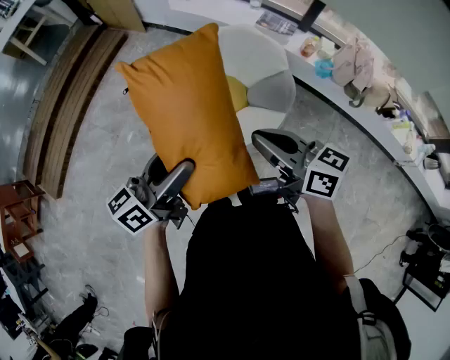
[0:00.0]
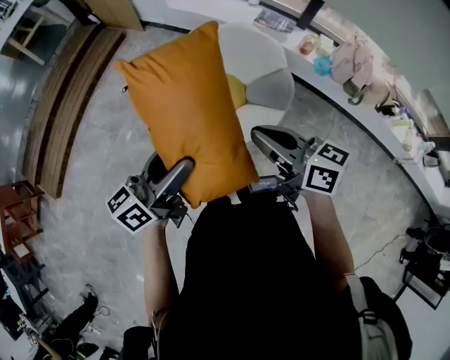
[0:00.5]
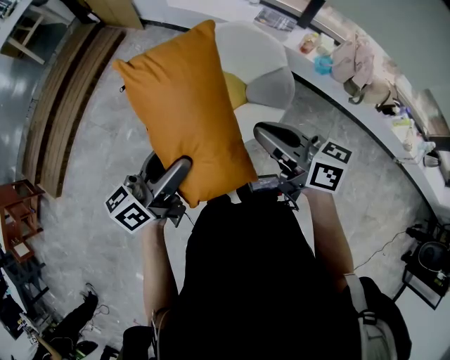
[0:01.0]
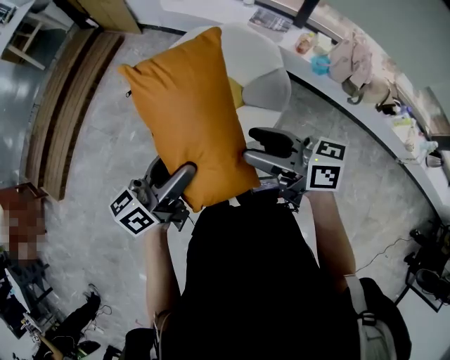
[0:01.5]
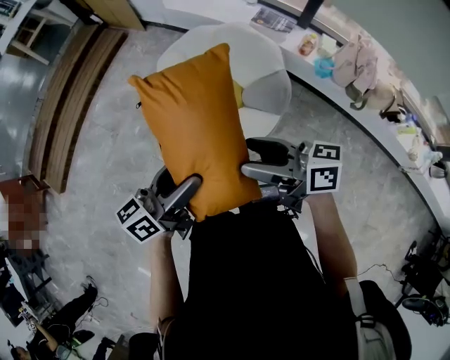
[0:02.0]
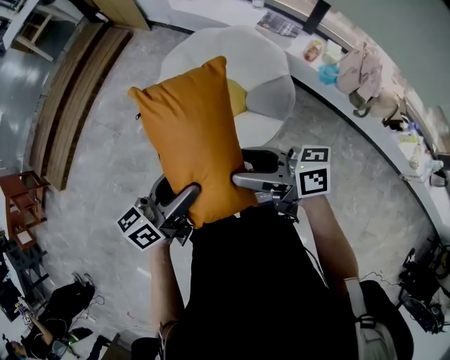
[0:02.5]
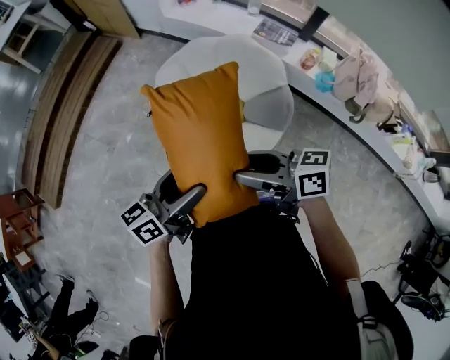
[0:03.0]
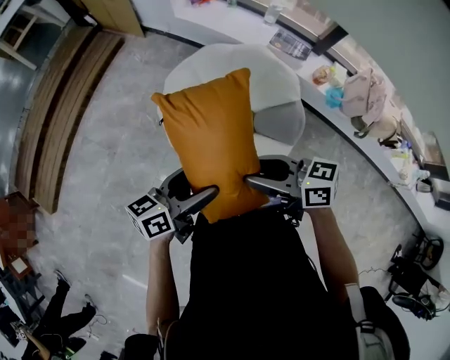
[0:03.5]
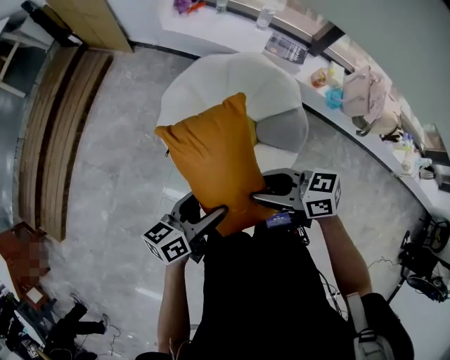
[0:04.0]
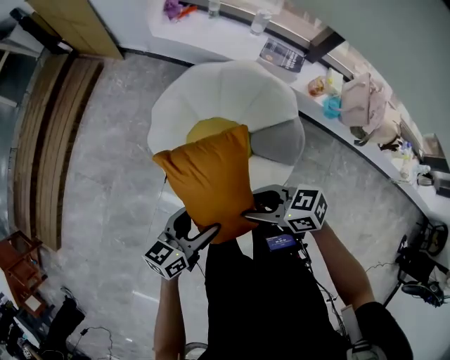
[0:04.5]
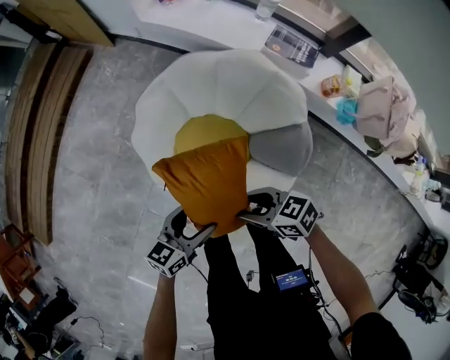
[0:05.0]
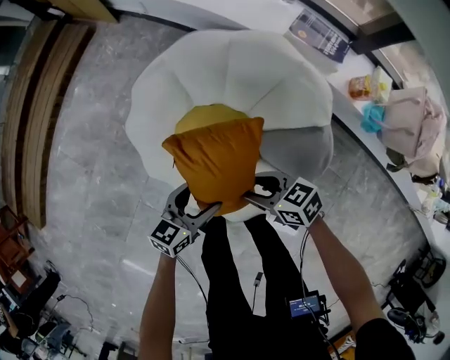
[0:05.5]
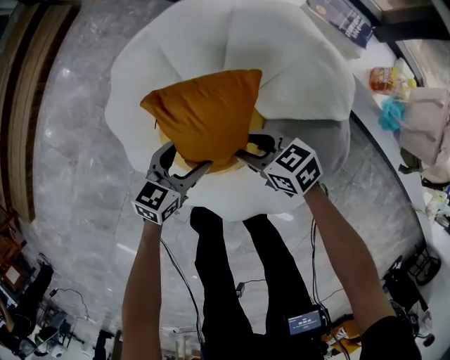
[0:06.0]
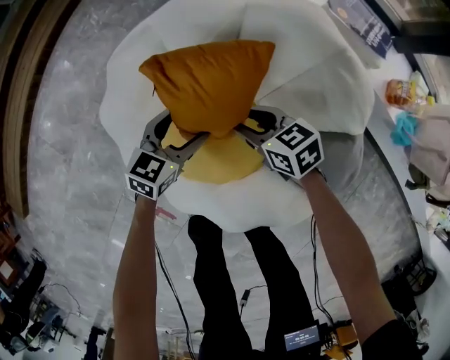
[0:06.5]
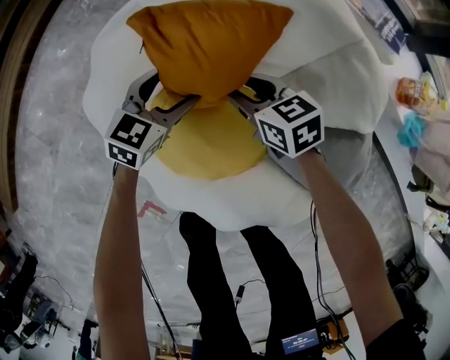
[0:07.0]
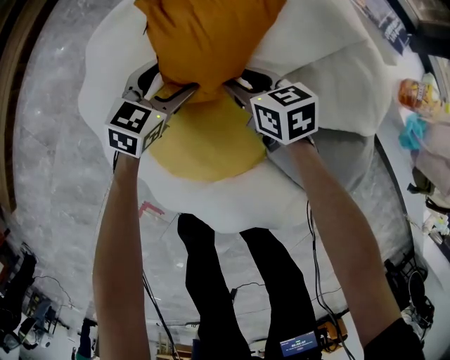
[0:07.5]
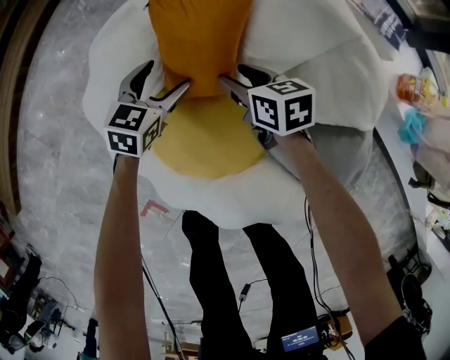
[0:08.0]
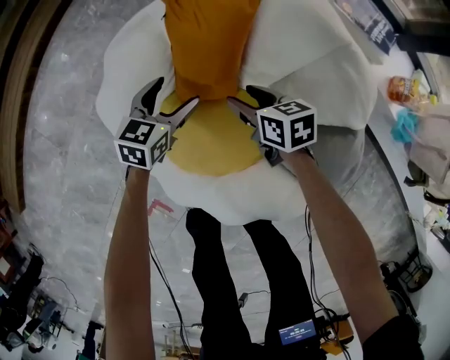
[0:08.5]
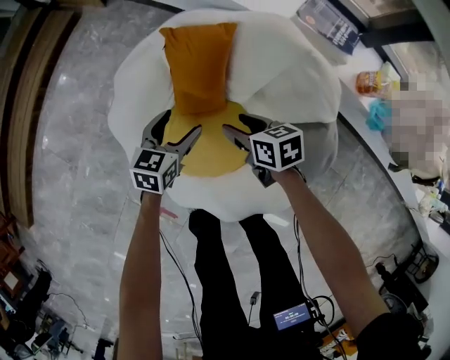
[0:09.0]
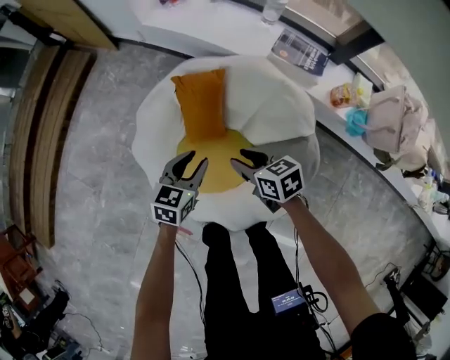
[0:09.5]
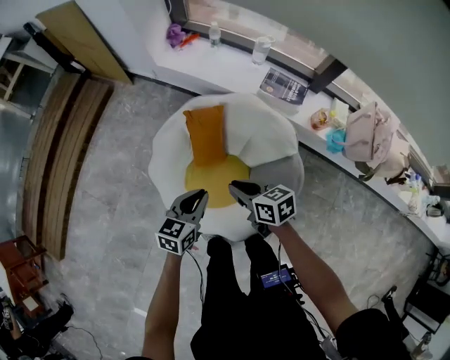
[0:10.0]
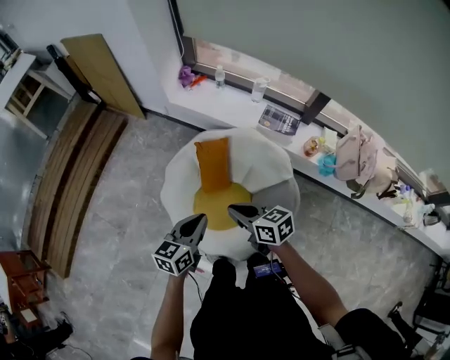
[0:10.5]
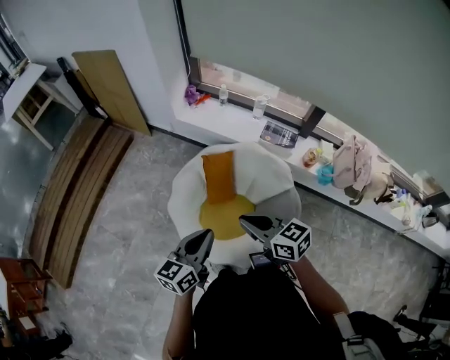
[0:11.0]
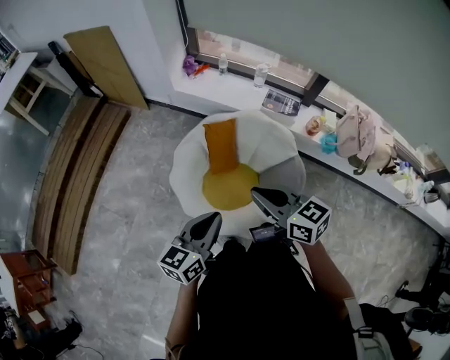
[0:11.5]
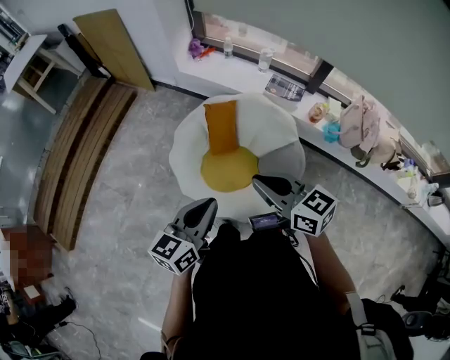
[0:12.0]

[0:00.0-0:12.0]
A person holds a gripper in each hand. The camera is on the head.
0:00.0 to 0:02.0: The two grippers go approximately 10 cm to the right. The right gripper swivels roughly 20 degrees, and opens up.
0:02.0 to 0:04.0: The right gripper ends up about 25 cm from where it was, changes its angle by some 20 degrees, and closes its fingers. The left gripper changes place by about 25 cm.
0:04.0 to 0:06.0: The grippers both shift downward by approximately 50 cm. The right gripper turns by some 20 degrees, while the left gripper turns by roughly 30 degrees.
0:06.0 to 0:08.0: The two grippers go some 20 cm forward and downward. The right gripper rotates some 20 degrees.
0:08.0 to 0:10.0: Both grippers move upward and backward, about 50 cm. The right gripper closes up, while the left gripper closes its fingers.
0:10.0 to 0:12.0: The grippers both shift upward and backward by some 30 cm. The right gripper swivels approximately 30 degrees.

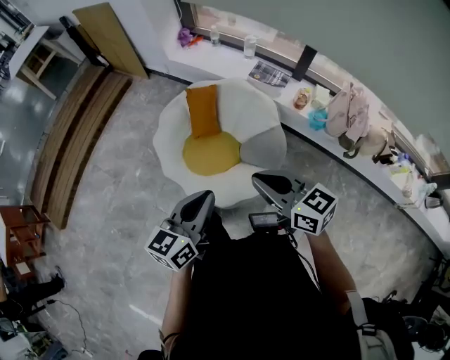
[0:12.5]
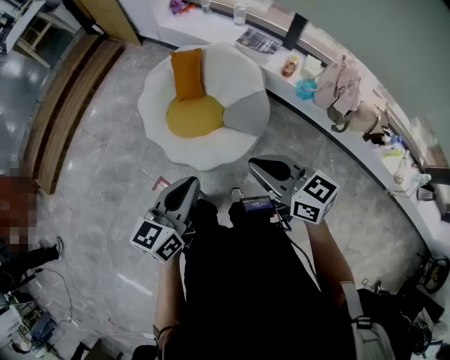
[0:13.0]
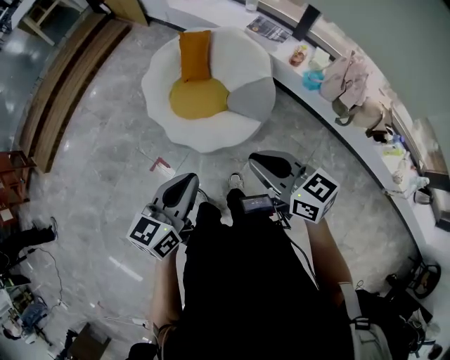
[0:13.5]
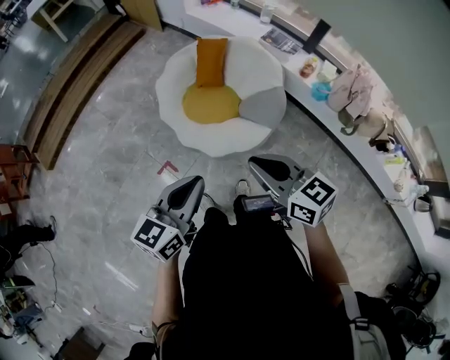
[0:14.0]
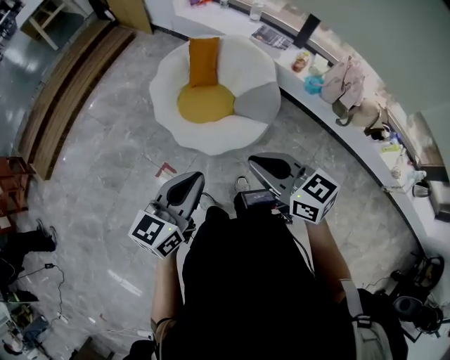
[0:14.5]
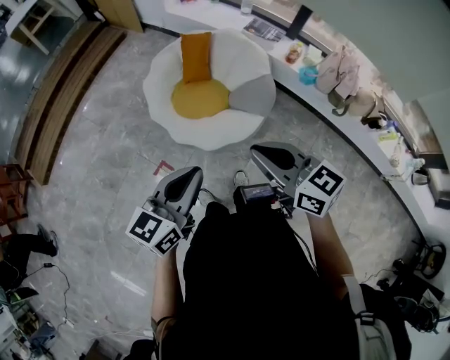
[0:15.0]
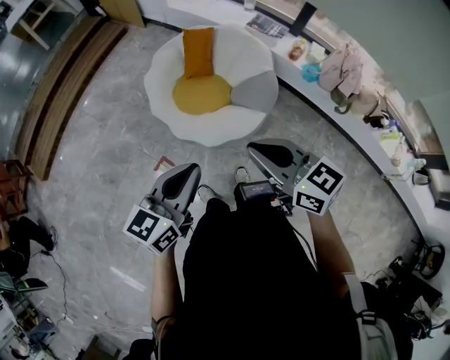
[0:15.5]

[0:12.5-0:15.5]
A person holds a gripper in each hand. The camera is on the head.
0:12.5 to 0:14.0: The grippers both shift backward by some 20 cm.
0:14.0 to 0:15.5: The grippers move only a little.

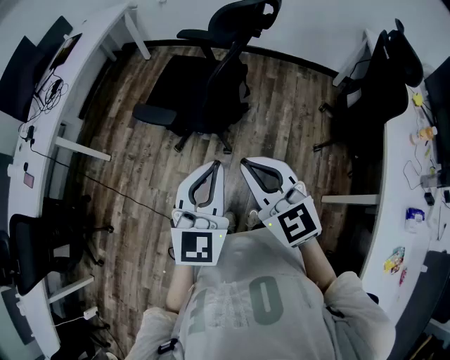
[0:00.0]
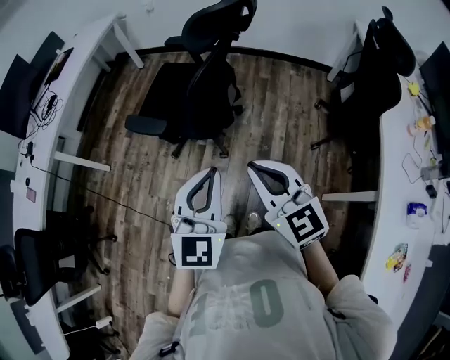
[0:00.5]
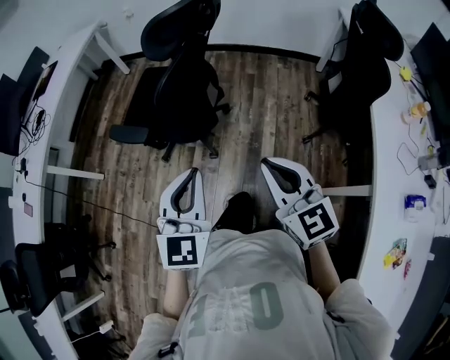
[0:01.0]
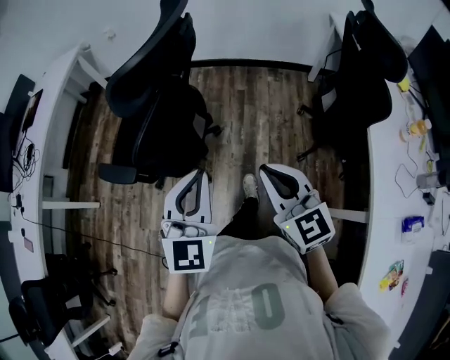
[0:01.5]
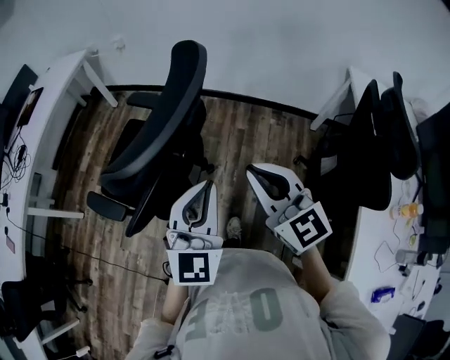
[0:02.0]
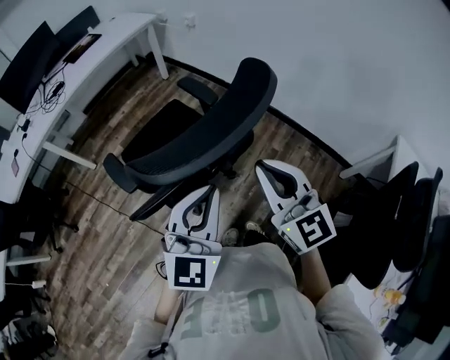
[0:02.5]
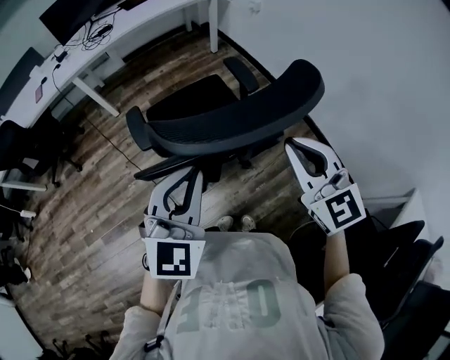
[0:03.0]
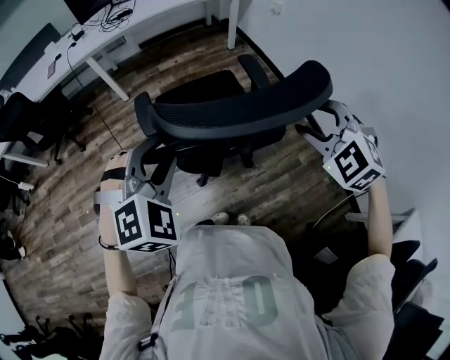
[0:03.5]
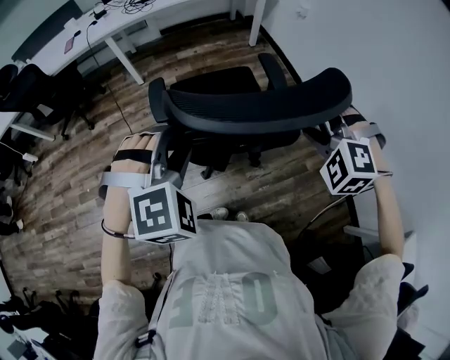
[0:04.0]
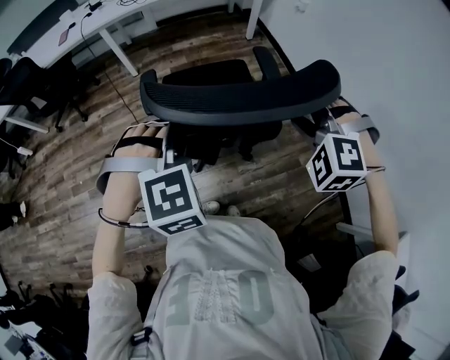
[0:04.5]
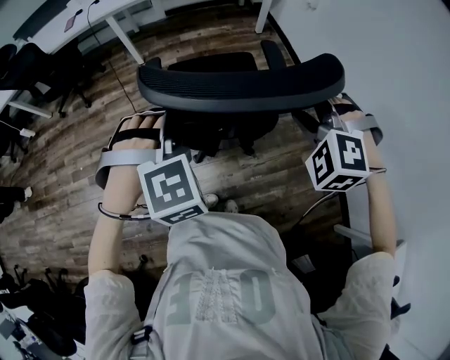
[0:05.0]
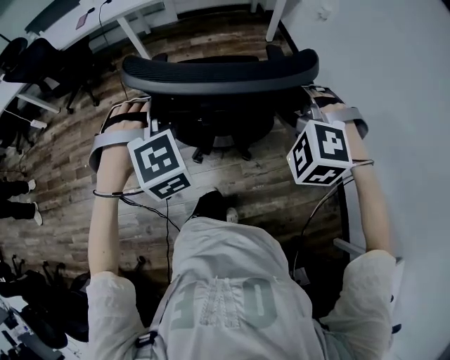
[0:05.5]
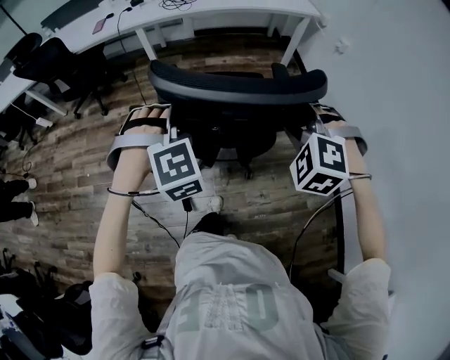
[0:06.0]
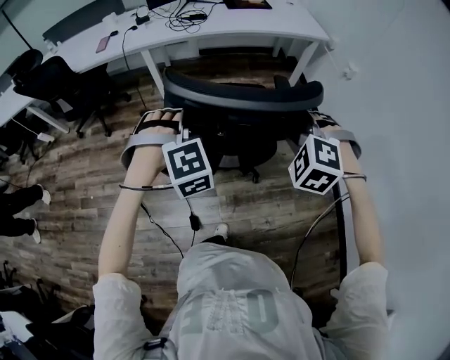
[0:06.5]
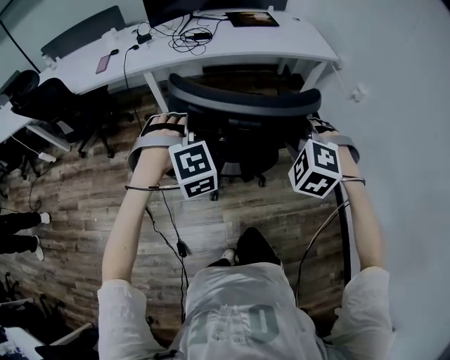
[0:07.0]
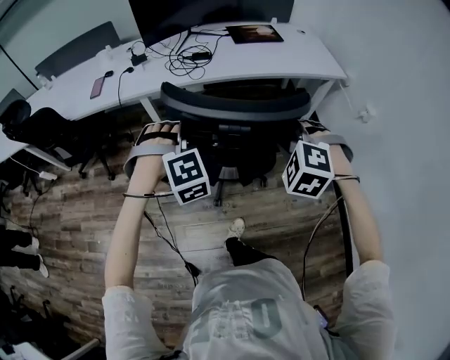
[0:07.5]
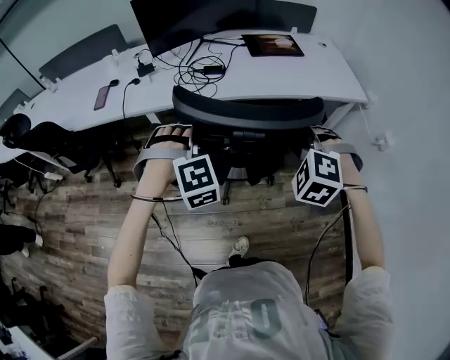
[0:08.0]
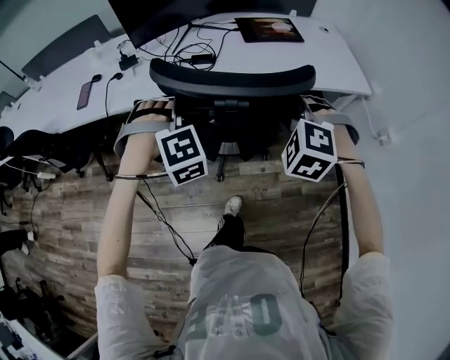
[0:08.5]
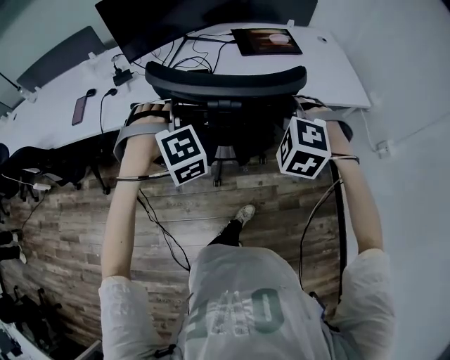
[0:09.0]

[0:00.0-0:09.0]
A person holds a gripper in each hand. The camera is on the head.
0:00.0 to 0:02.0: Both grippers travel together forward and to the right, about 40 cm.
0:02.0 to 0:04.5: The left gripper changes place by some 10 cm, tilts its fingers about 50 degrees downward, and opens its fingers. Meanwhile the right gripper ends up about 20 cm from where it was, rolls counterclockwise, seen from behind, by some 80 degrees, and opens up.
0:04.5 to 0:07.0: Both grippers are carried forward, some 40 cm.
0:07.0 to 0:09.0: The pair of grippers is taken forward, roughly 40 cm.

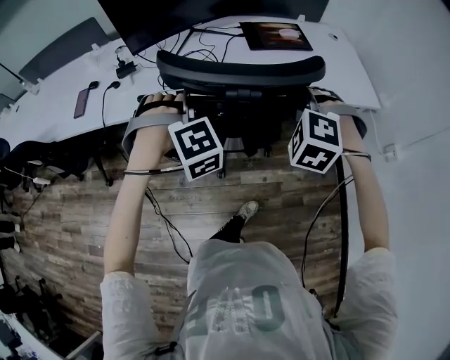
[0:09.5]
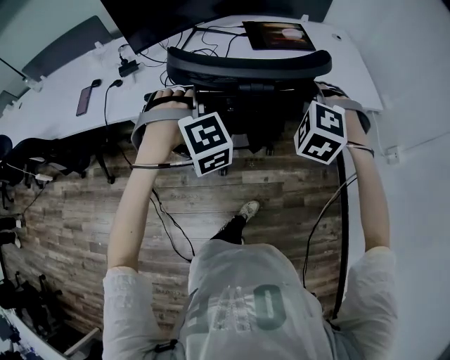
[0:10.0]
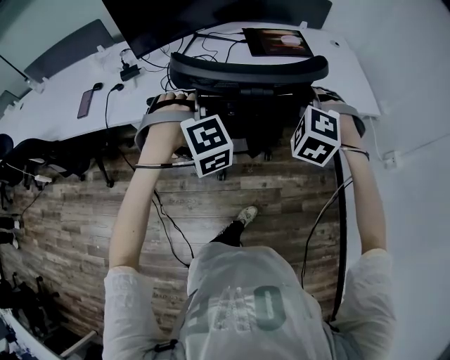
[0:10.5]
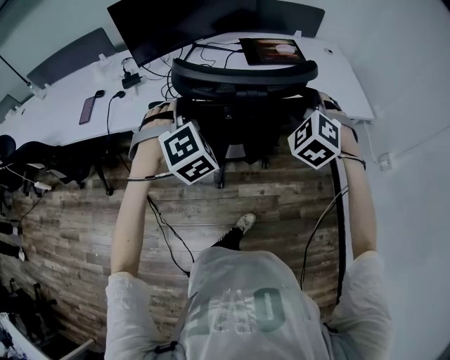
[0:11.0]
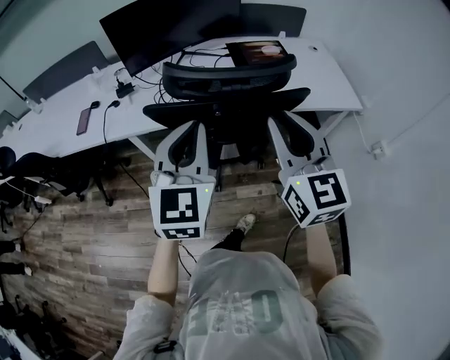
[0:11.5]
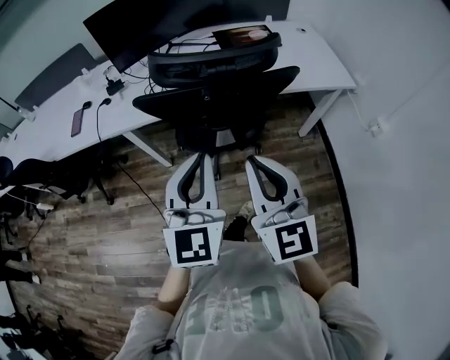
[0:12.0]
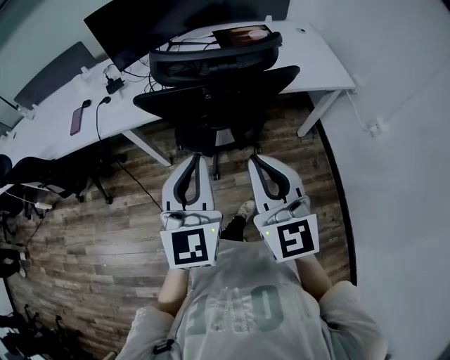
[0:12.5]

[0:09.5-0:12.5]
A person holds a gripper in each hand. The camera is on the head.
0:09.5 to 0:11.0: The left gripper rotates some 20 degrees.
0:11.0 to 0:12.5: The left gripper travels backward by roughly 20 cm, rotates around the line of its fingers by some 60 degrees, counterclockwise from behind, and closes its fingers; the right gripper is displaced backward and to the left by roughly 25 cm, points its fingers approximately 40 degrees further upward, and closes.
